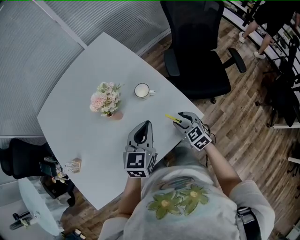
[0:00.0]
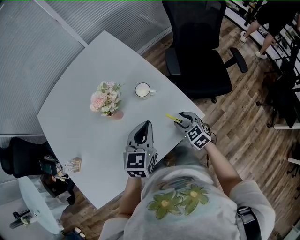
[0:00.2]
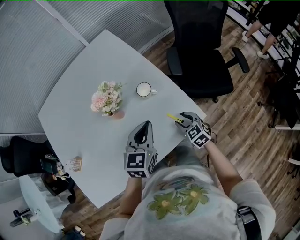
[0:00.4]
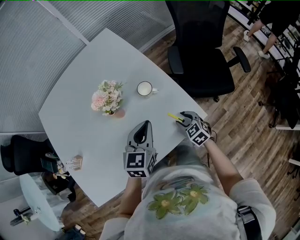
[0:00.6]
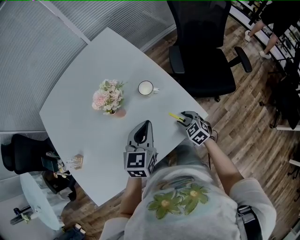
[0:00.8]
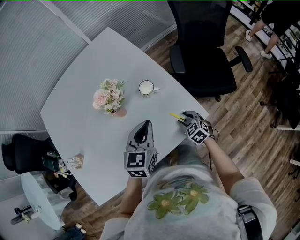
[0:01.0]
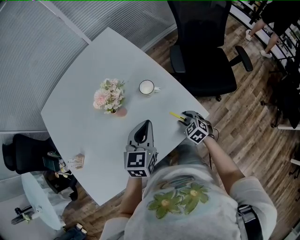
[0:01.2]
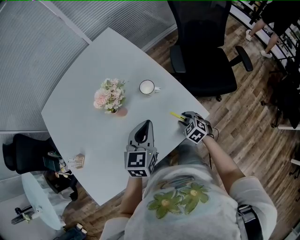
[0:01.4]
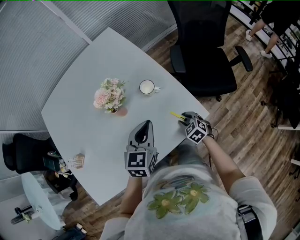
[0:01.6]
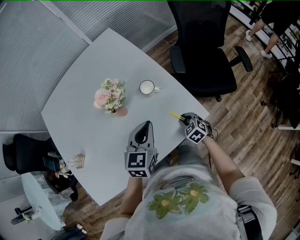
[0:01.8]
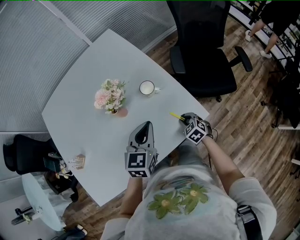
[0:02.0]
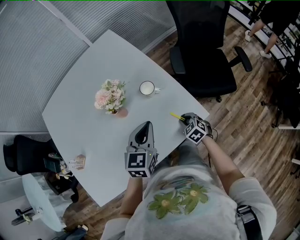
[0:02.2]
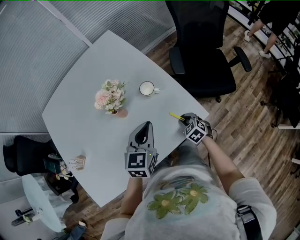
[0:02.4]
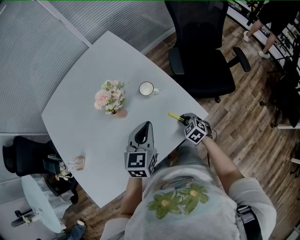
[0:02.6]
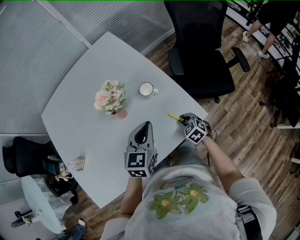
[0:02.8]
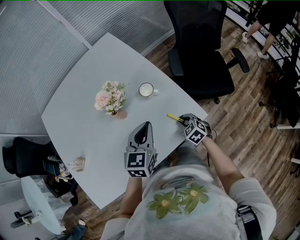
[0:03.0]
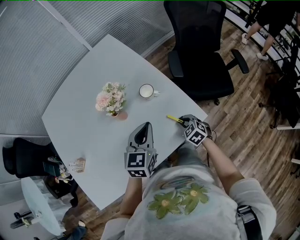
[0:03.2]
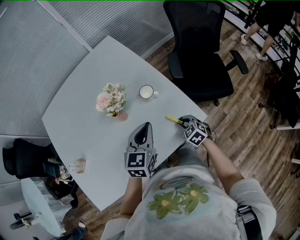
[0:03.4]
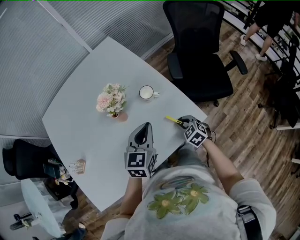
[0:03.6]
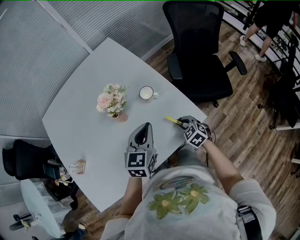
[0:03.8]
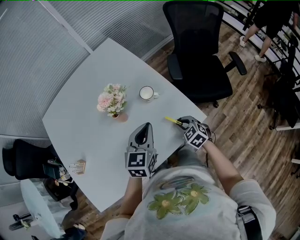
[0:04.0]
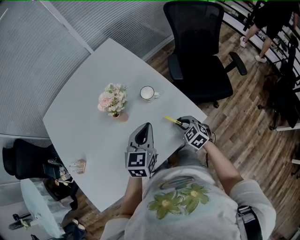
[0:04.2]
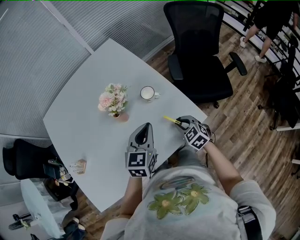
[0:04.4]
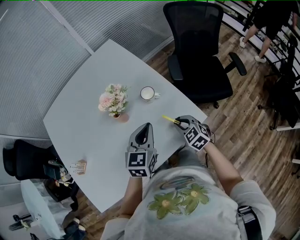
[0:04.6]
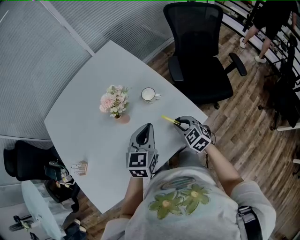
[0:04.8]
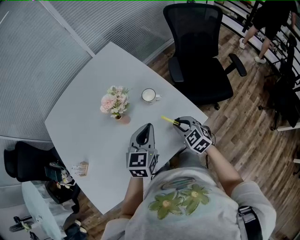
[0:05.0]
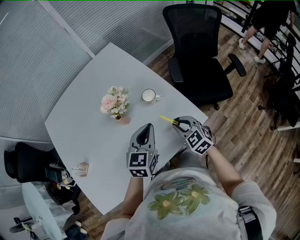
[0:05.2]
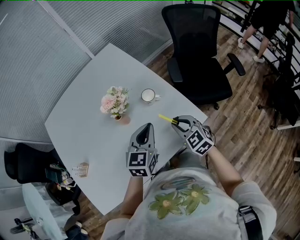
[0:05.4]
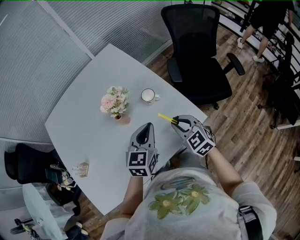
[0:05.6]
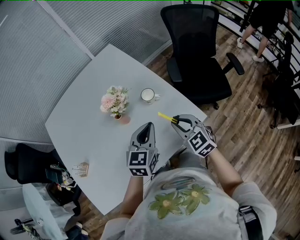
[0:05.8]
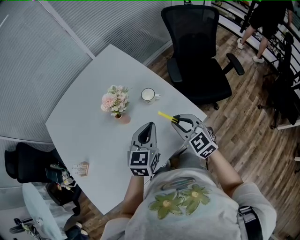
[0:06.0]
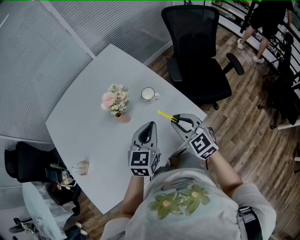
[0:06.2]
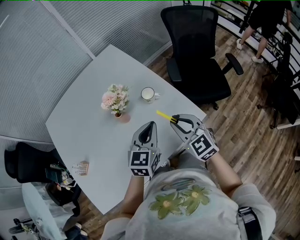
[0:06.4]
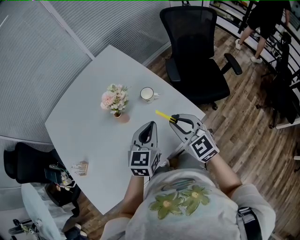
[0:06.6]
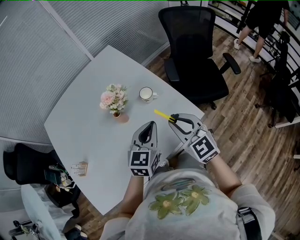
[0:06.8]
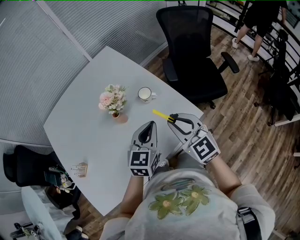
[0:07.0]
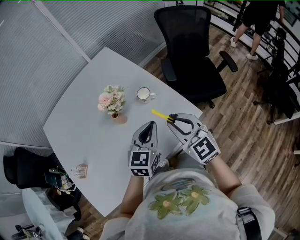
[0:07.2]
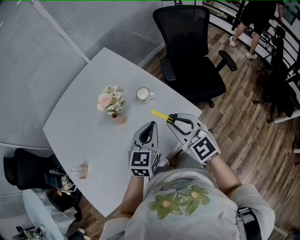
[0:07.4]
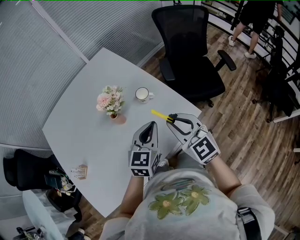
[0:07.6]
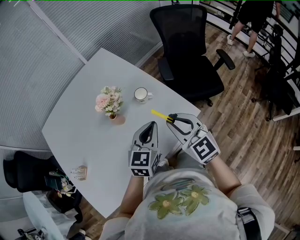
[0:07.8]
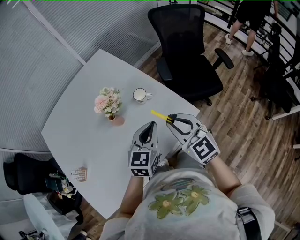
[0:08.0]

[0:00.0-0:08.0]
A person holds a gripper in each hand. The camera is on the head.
0:00.0 to 0:01.6: The right gripper heads downward, covering approximately 10 cm.
0:01.6 to 0:03.2: The grippers make only small movements.
0:03.2 to 0:04.8: The right gripper moves upward, about 10 cm.
0:04.8 to 0:06.4: The right gripper is displaced upward by approximately 15 cm.
0:06.4 to 0:08.0: The grippers move only a little.

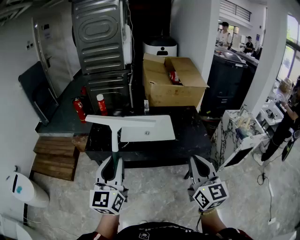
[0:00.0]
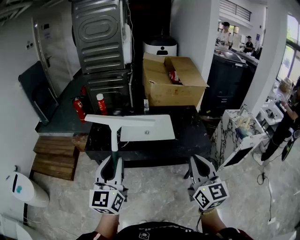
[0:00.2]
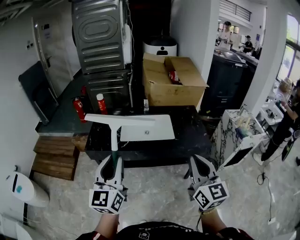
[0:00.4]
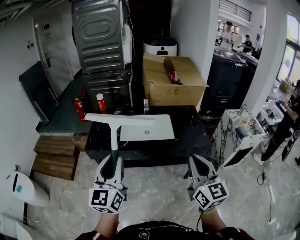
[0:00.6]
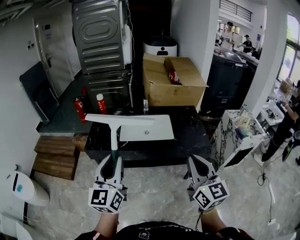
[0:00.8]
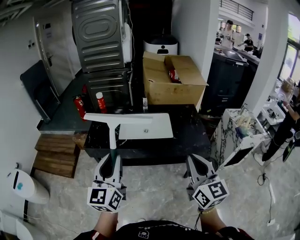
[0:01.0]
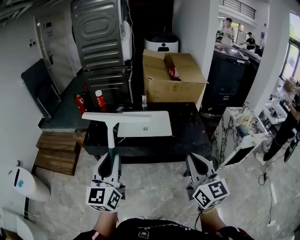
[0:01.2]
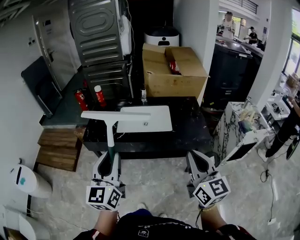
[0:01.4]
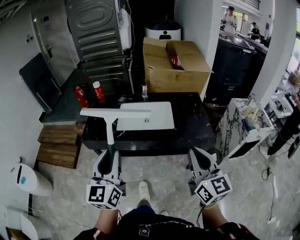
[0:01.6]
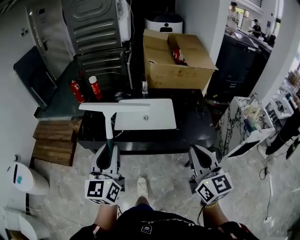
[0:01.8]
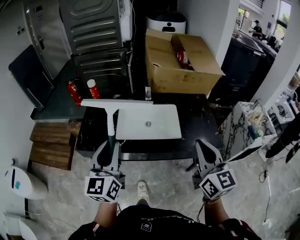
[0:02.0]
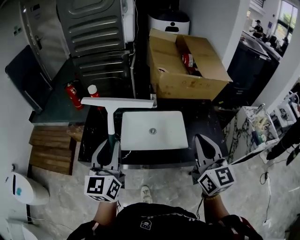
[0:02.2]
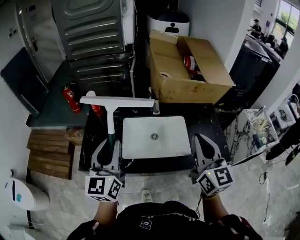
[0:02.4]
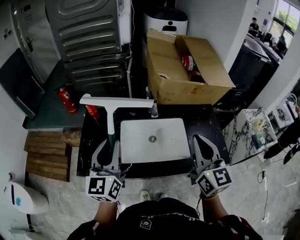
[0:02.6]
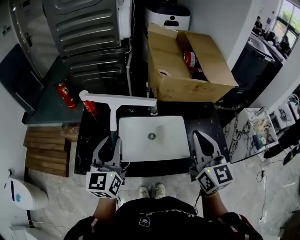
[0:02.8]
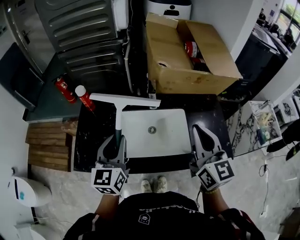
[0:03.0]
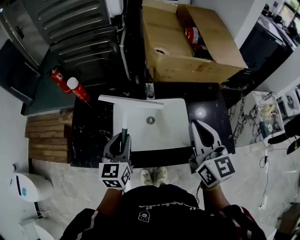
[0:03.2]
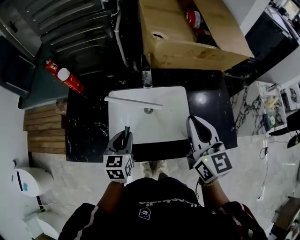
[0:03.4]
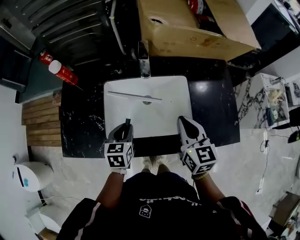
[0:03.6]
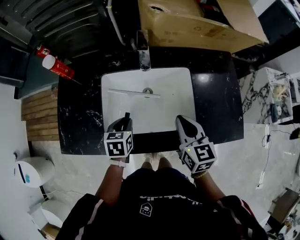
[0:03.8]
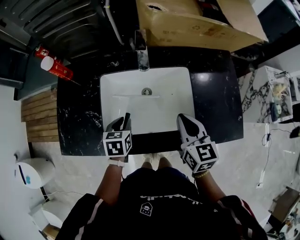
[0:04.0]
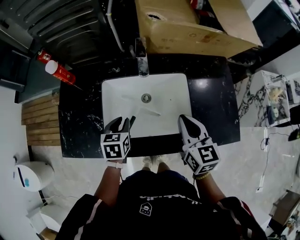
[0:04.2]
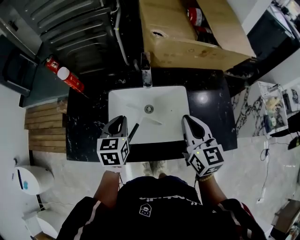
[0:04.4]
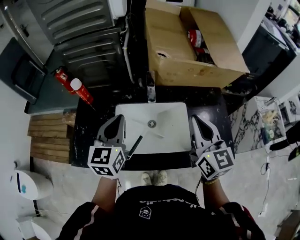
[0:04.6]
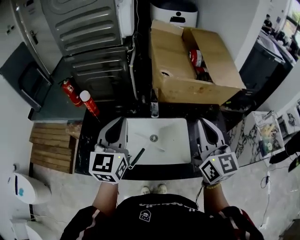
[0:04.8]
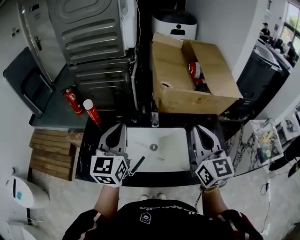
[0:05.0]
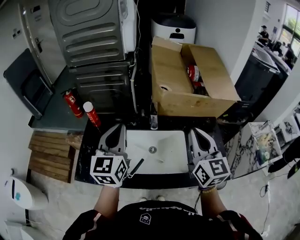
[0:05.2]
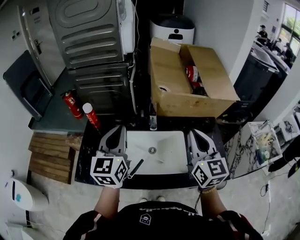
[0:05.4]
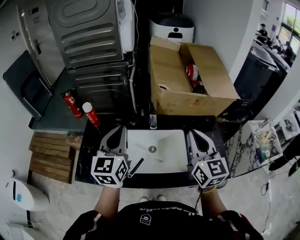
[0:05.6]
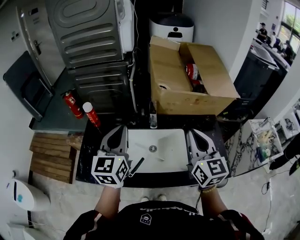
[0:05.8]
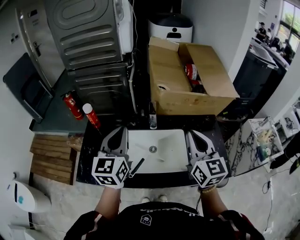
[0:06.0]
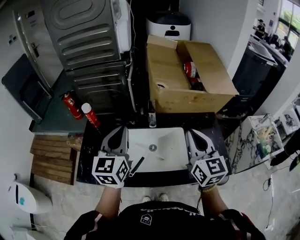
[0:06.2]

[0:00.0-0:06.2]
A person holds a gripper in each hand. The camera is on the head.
0:00.0 to 0:01.6: The two grippers go approximately 5 cm to the right.
0:01.6 to 0:03.2: Both grippers are carried forward, approximately 40 cm. The left gripper heads downward, covering approximately 20 cm, and changes its angle by approximately 30 degrees.
0:03.2 to 0:04.6: The right gripper reaches some 20 cm downward, then returns; the left gripper travels forward by about 5 cm, and goes downward and returns, about 20 cm each way.
0:04.6 to 0:06.2: The left gripper heads upward, covering some 10 cm.

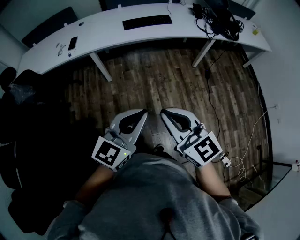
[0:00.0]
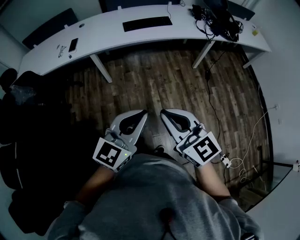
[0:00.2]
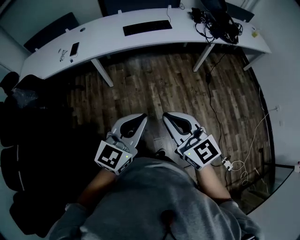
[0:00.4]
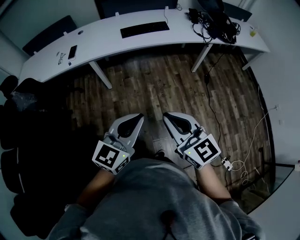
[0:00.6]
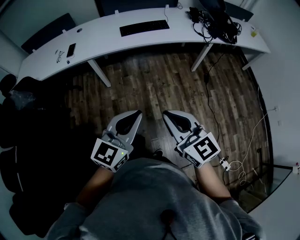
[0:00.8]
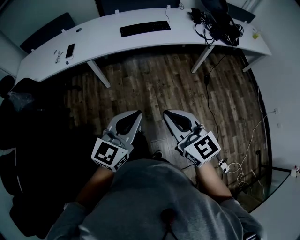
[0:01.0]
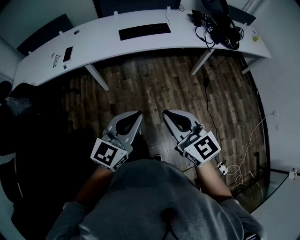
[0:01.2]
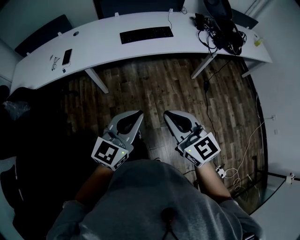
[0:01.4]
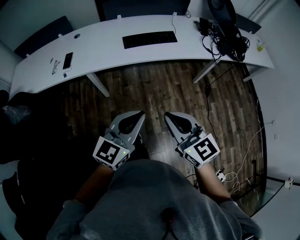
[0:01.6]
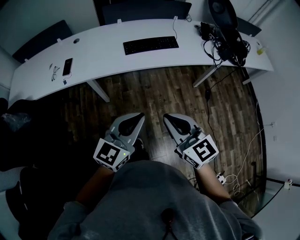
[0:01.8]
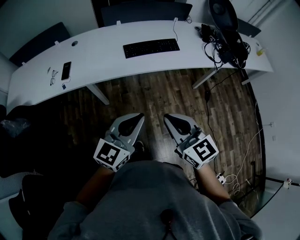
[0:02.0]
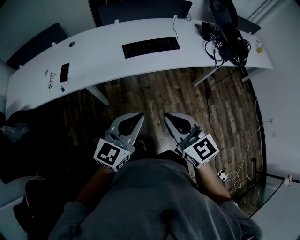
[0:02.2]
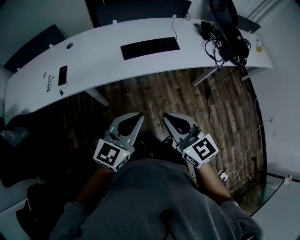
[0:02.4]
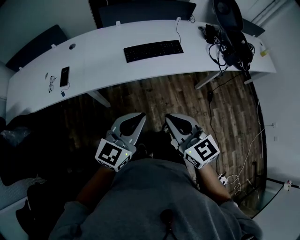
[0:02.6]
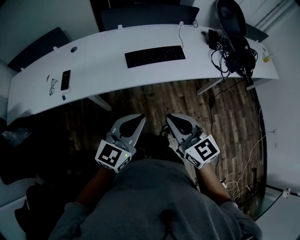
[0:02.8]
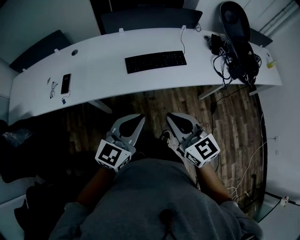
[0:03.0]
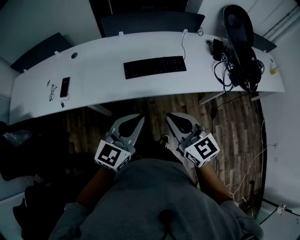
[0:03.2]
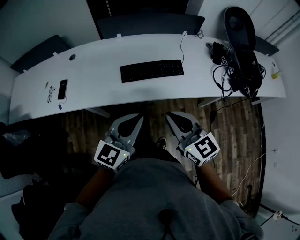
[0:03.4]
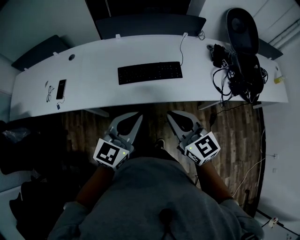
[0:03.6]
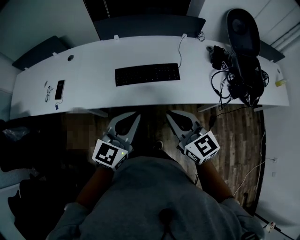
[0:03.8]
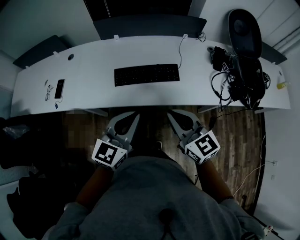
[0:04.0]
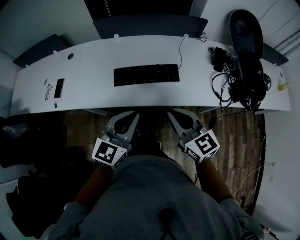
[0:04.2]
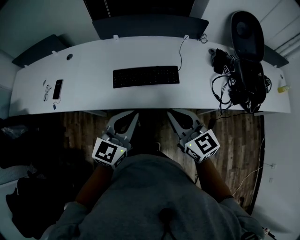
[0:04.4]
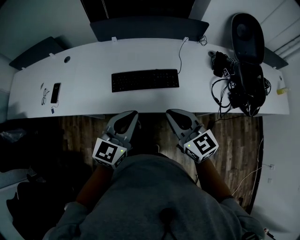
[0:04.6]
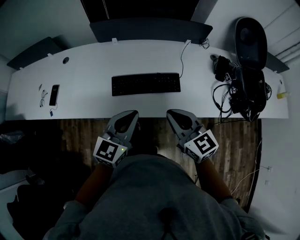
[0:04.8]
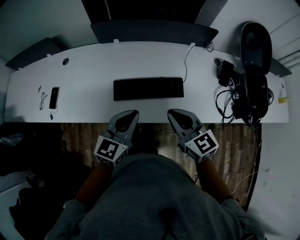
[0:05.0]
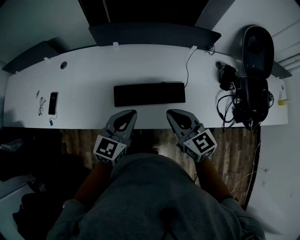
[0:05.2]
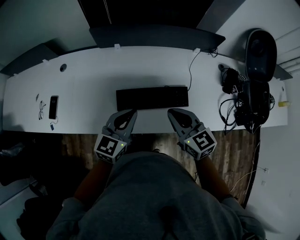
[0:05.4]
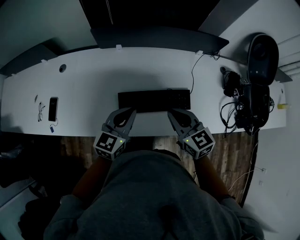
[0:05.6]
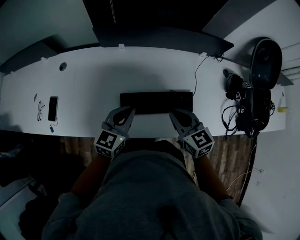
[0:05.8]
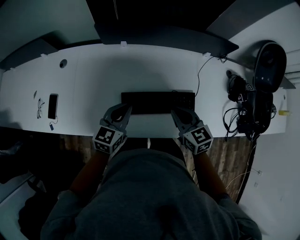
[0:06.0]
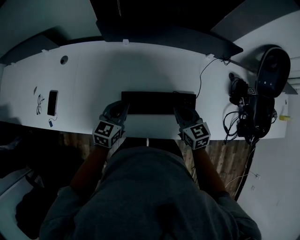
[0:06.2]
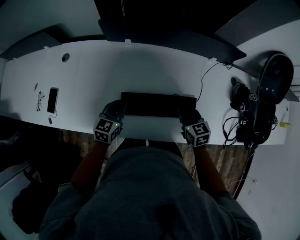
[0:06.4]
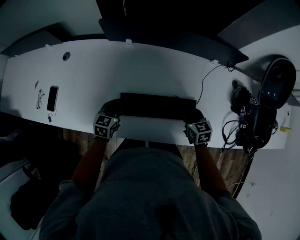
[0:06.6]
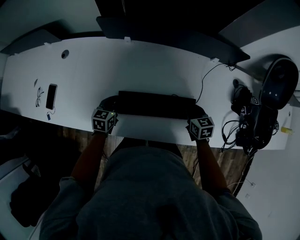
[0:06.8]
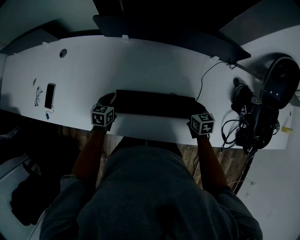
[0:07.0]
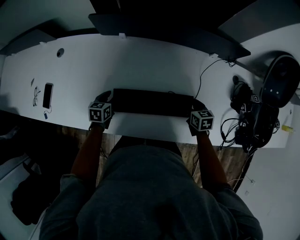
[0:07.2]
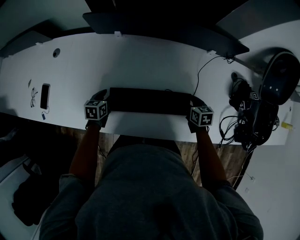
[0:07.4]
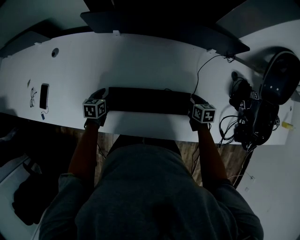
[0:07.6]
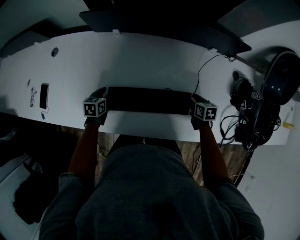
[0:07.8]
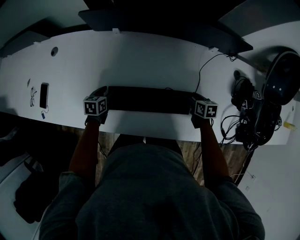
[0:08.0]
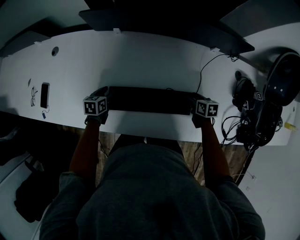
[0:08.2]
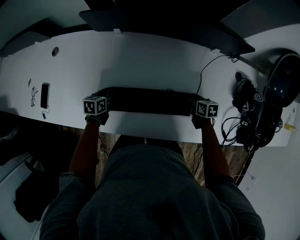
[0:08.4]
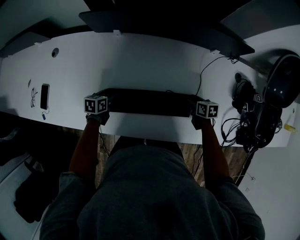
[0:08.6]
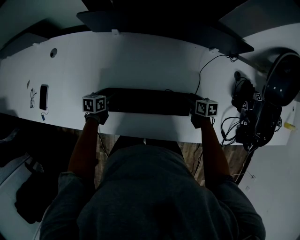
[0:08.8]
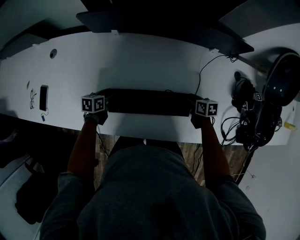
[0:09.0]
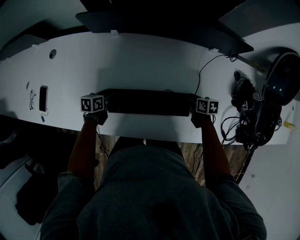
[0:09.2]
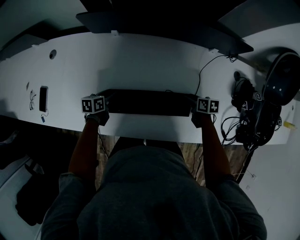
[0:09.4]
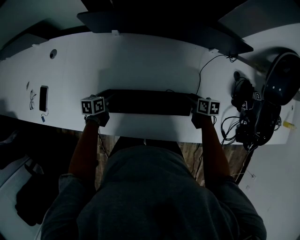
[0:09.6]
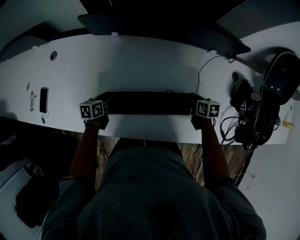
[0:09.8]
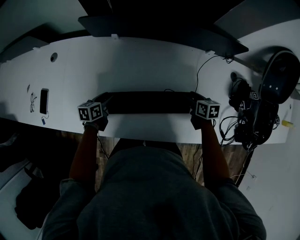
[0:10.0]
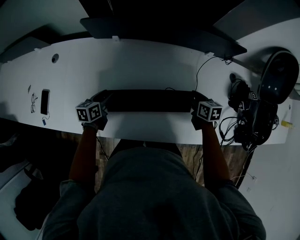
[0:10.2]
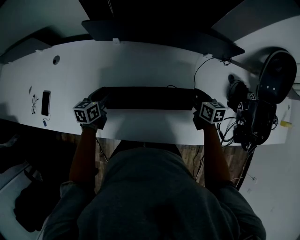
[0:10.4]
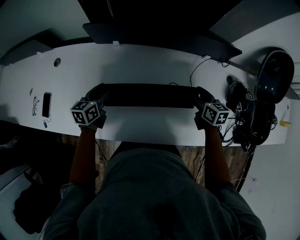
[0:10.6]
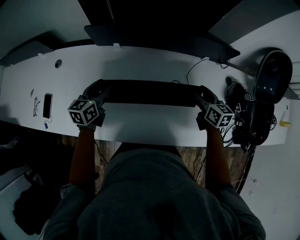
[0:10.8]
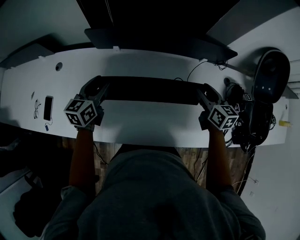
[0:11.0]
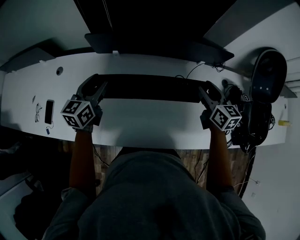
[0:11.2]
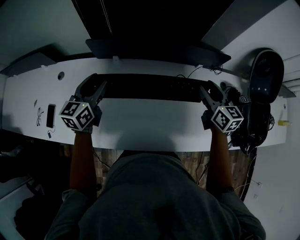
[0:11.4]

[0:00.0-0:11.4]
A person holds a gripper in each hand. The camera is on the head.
0:00.0 to 0:01.4: Both grippers travel together forward, some 15 cm.
0:01.4 to 0:02.8: The two grippers go approximately 25 cm forward.
0:02.8 to 0:04.2: Both grippers move forward and to the right, approximately 25 cm.
0:04.2 to 0:05.6: Both grippers travel together forward, roughly 25 cm.
0:05.6 to 0:07.2: The left gripper moves downward, roughly 25 cm, angles its fingers downward, by some 30 degrees, and opens its fingers. The right gripper goes roughly 30 cm downward, to the right and forward, swivels roughly 30 degrees, and opens up.
0:07.2 to 0:08.6: The right gripper is displaced downward by roughly 5 cm.
0:08.6 to 0:10.0: The right gripper heads upward, covering roughly 5 cm.
0:10.0 to 0:11.4: Both grippers move upward, some 30 cm. The right gripper tilts its fingers about 30 degrees upward. Meanwhile the left gripper changes its angle by some 40 degrees.
